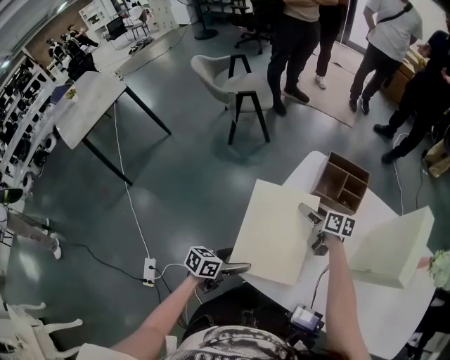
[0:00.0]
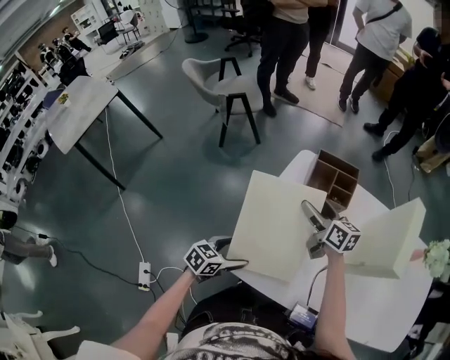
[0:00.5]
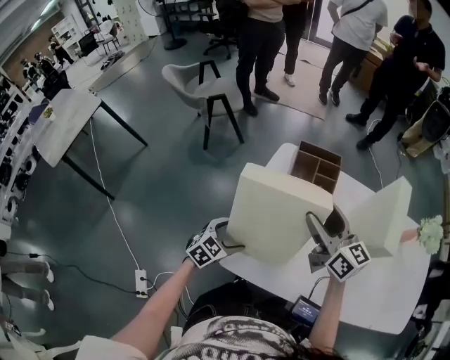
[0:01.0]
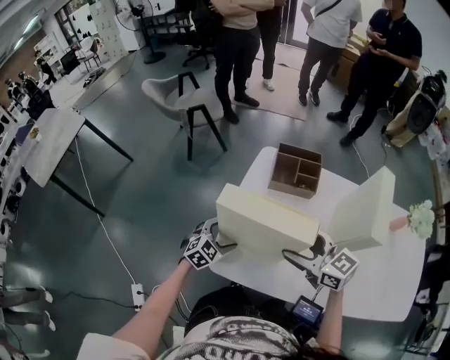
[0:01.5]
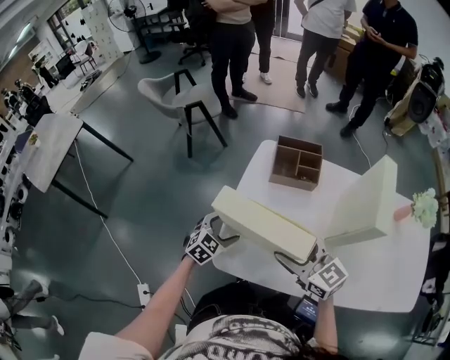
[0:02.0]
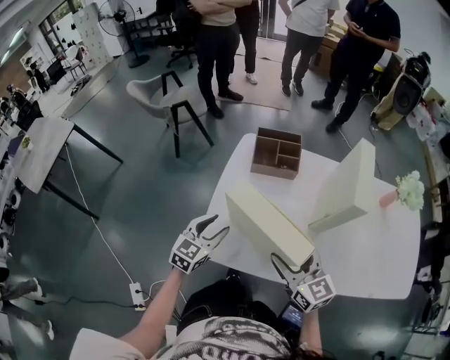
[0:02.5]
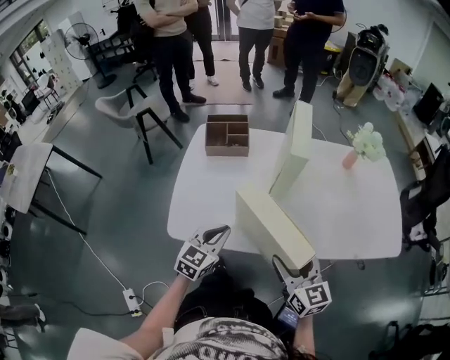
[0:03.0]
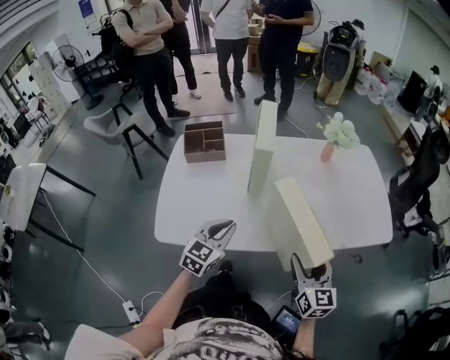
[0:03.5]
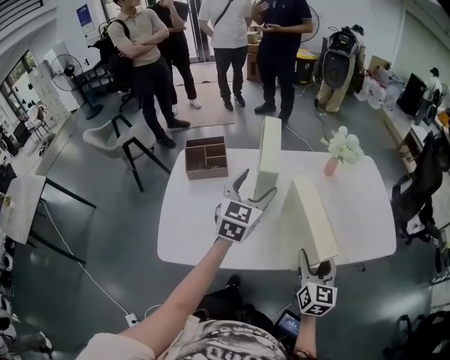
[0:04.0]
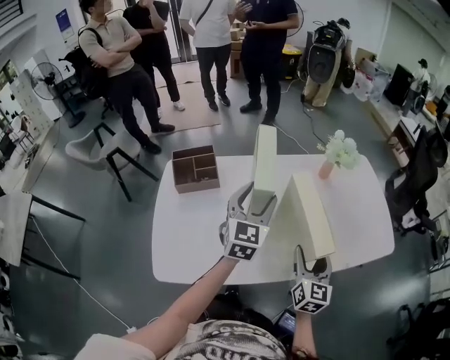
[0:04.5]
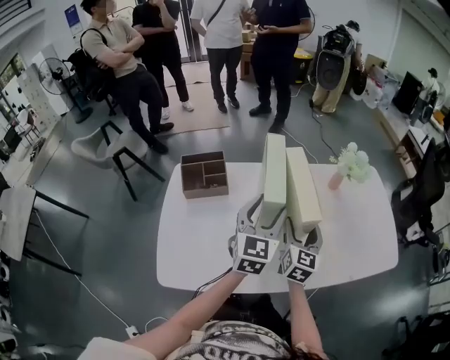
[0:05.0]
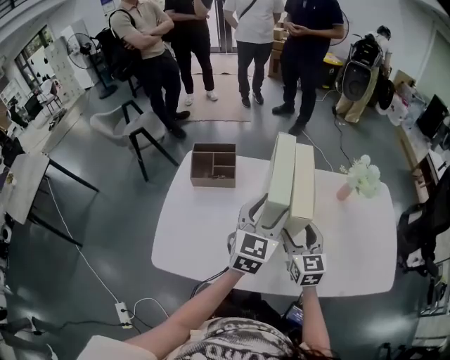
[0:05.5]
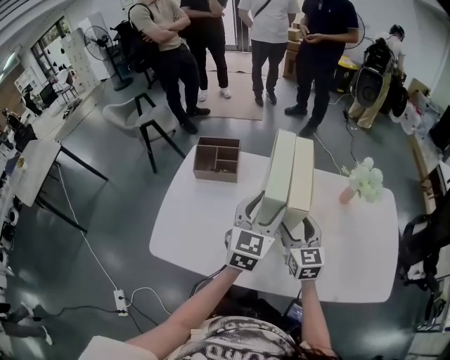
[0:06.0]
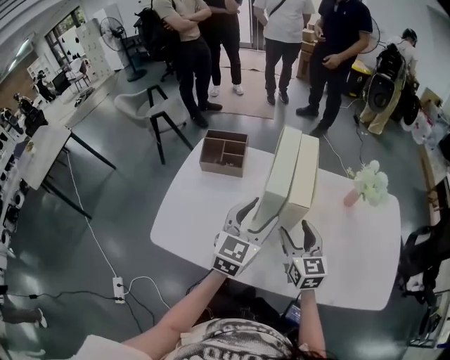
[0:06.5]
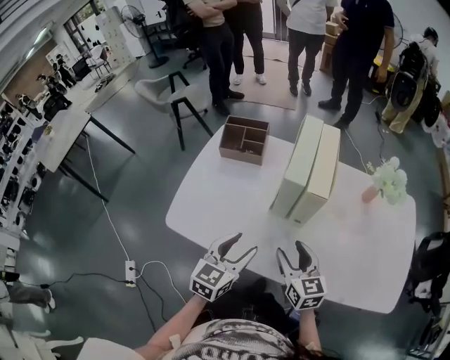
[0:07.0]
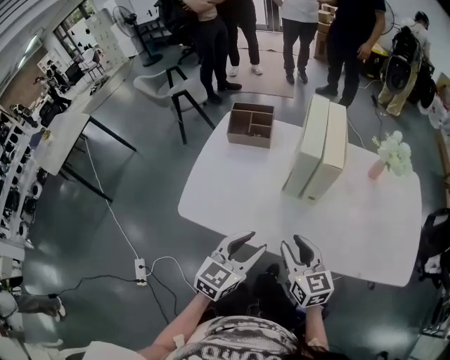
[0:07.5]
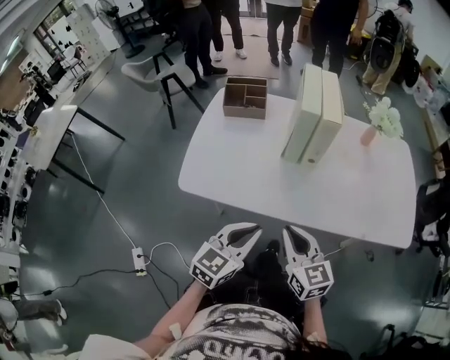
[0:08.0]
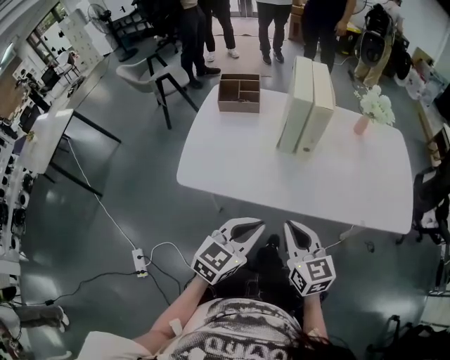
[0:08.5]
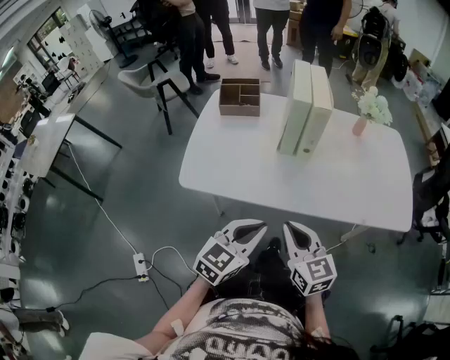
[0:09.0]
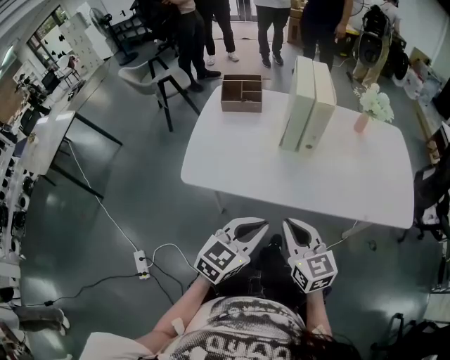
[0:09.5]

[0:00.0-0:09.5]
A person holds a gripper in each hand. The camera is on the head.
0:00.0 to 0:02.0: The left gripper heads forward, covering roughly 10 cm, and rotates around the line of its fingers by some 60 degrees, clockwise from behind. Meanwhile the right gripper is displaced backward and upward by roughly 30 cm, and rolls counterclockwise, seen from behind, by approximately 40 degrees.
0:02.0 to 0:04.0: The left gripper moves approximately 50 cm, changes its angle by roughly 30 degrees, and closes and opens again; the right gripper shifts by roughly 40 cm, and turns by about 70 degrees.
0:04.0 to 0:05.5: The right gripper travels forward and to the left by some 20 cm, and swivels approximately 30 degrees.
0:05.5 to 0:07.5: The two grippers go some 20 cm backward. The right gripper changes its angle by approximately 20 degrees, and closes.
0:07.5 to 0:09.5: Both grippers travel together backward, roughly 15 cm. The left gripper closes its fingers.

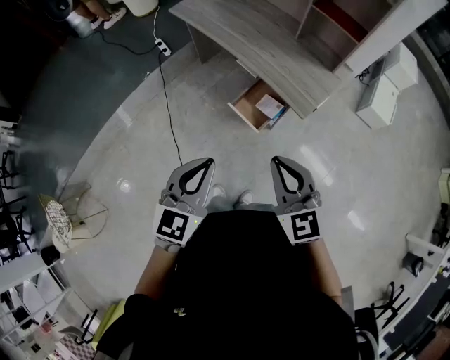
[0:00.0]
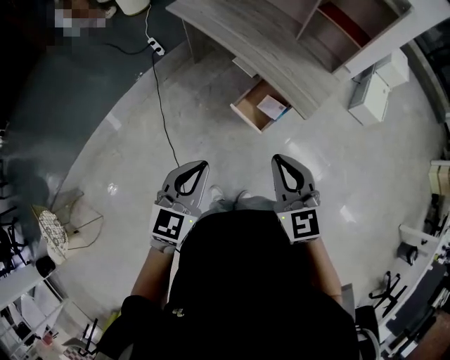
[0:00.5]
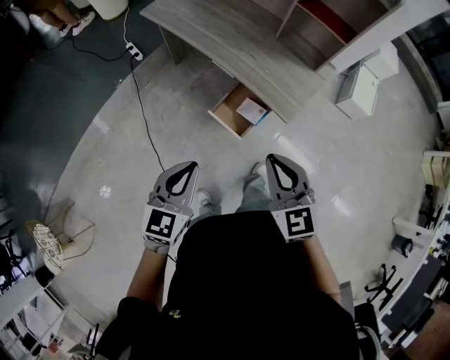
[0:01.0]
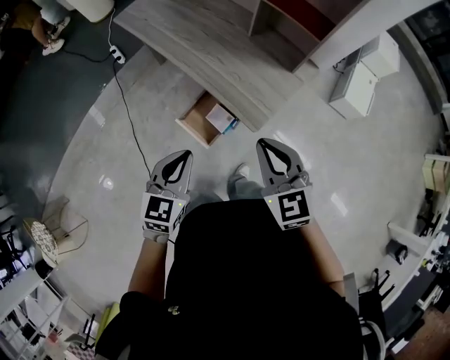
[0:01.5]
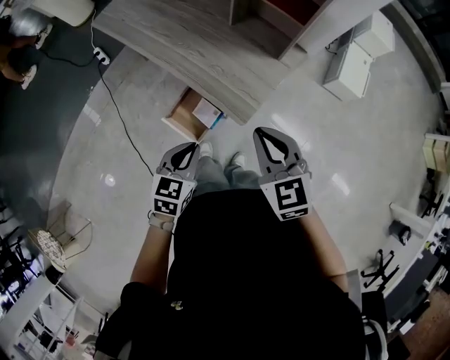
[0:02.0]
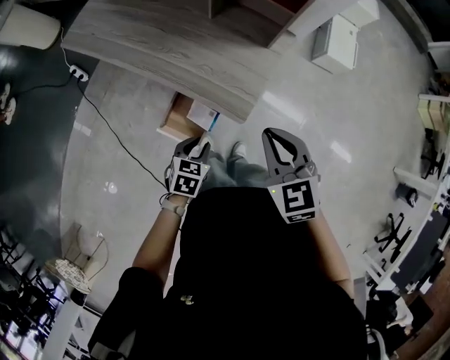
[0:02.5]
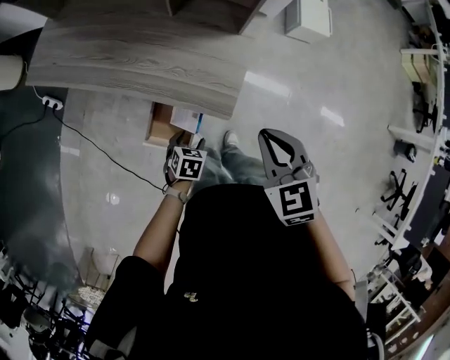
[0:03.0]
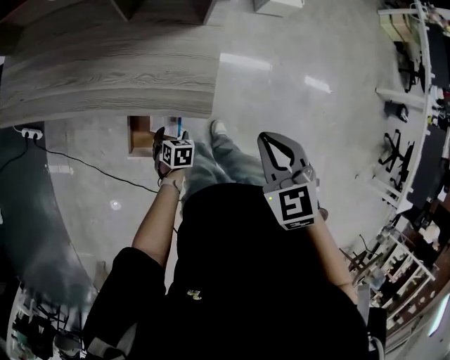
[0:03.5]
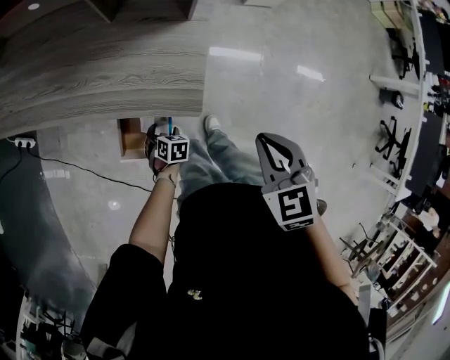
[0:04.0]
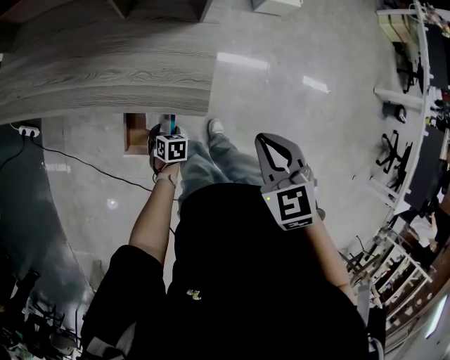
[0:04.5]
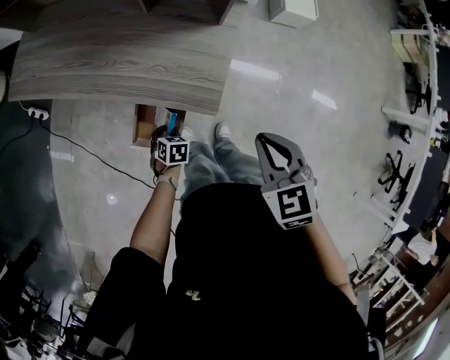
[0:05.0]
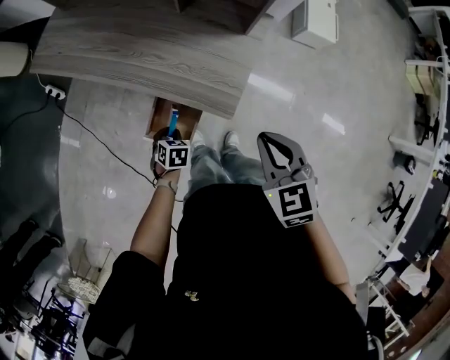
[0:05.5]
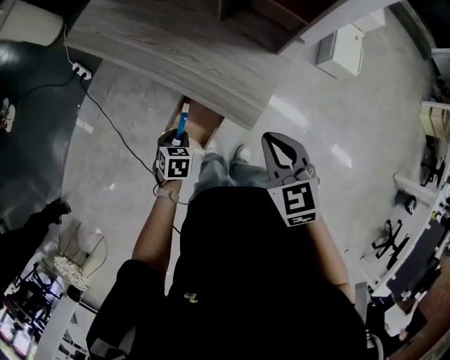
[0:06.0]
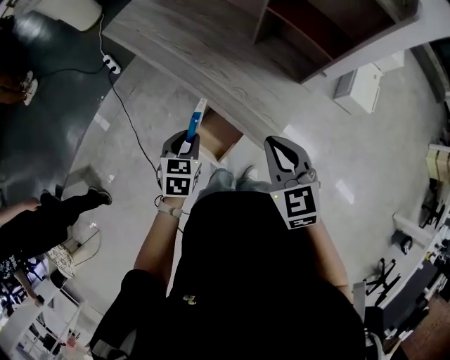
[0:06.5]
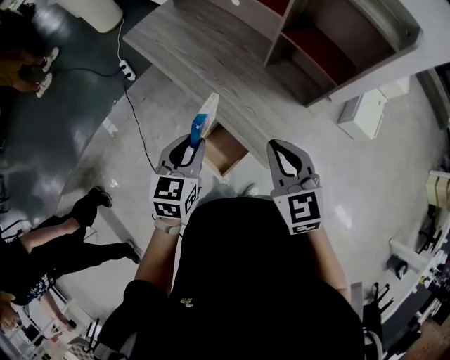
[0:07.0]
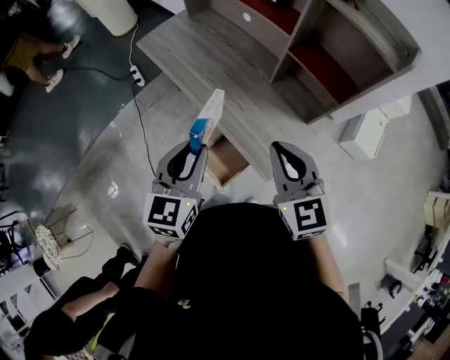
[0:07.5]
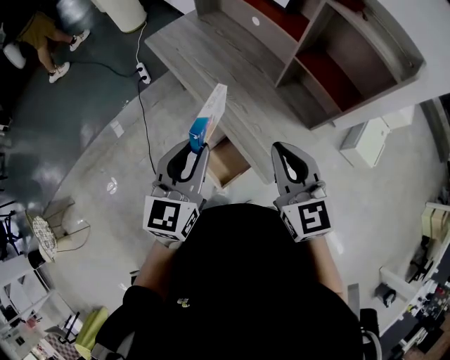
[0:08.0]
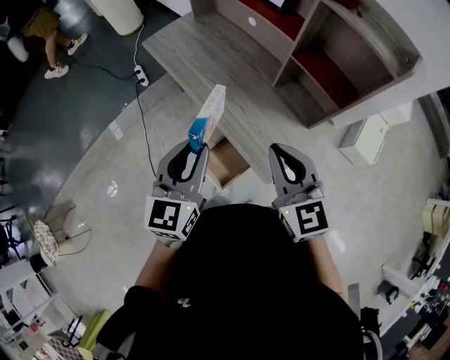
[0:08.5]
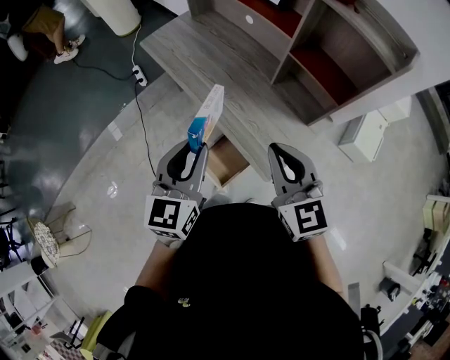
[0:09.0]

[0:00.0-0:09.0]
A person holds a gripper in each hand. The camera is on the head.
0:00.0 to 0:02.0: The right gripper goes approximately 25 cm forward and to the right; the left gripper is displaced forward, to the right and downward by approximately 30 cm, and changes its angle by roughly 20 degrees.
0:02.0 to 0:04.5: The right gripper shifts approximately 5 cm downward, and turns by about 40 degrees. The left gripper travels downward by roughly 30 cm, tips its fingers downward by about 40 degrees, and opens its fingers.
0:04.5 to 0:07.0: The right gripper ends up some 20 cm from where it was, and rotates some 40 degrees. The left gripper heads upward, covering some 40 cm, angles its fingers upward, by roughly 40 degrees, and closes its fingers.
0:07.0 to 0:09.0: The left gripper goes approximately 10 cm upward; the right gripper shifts some 5 cm upward.

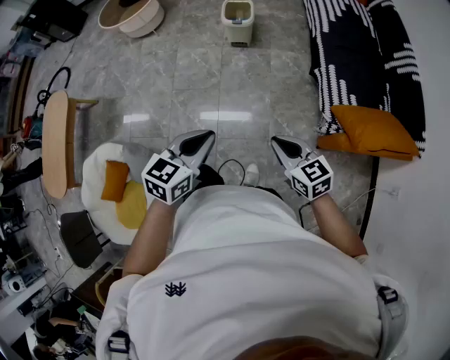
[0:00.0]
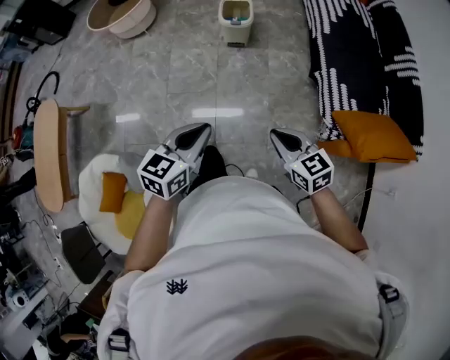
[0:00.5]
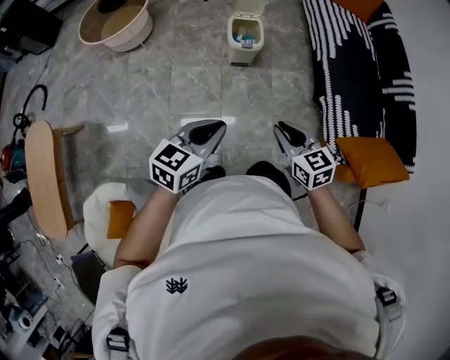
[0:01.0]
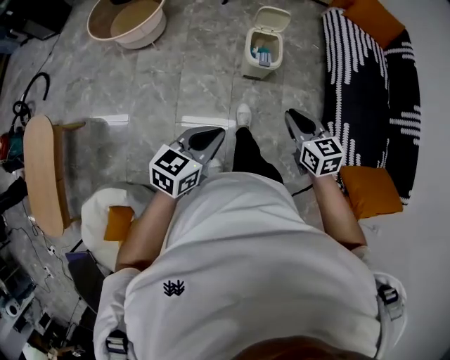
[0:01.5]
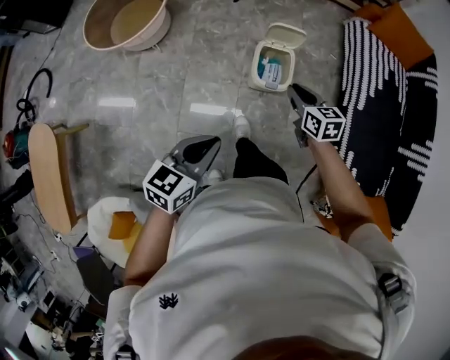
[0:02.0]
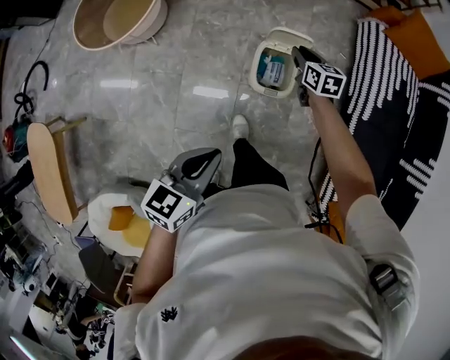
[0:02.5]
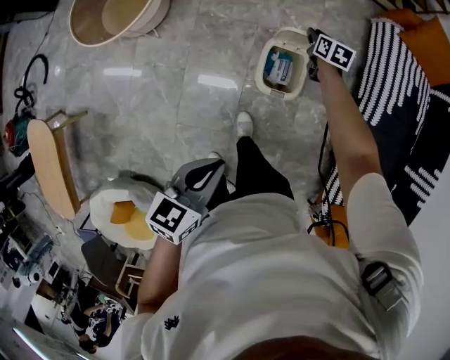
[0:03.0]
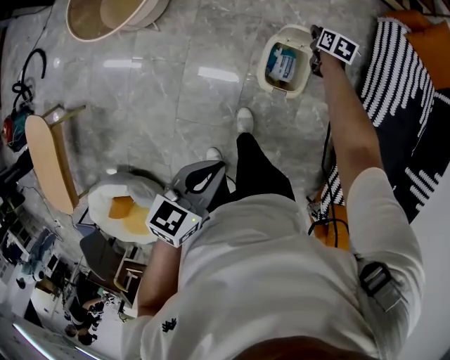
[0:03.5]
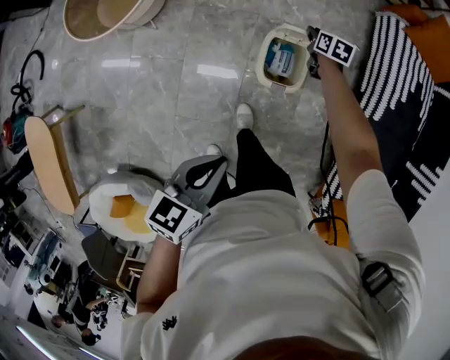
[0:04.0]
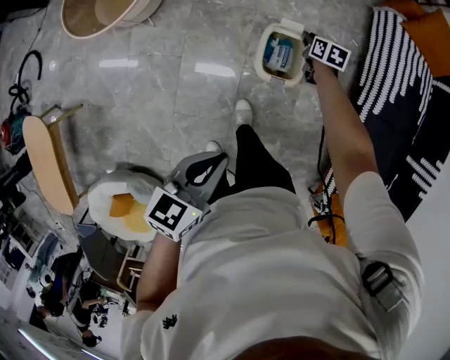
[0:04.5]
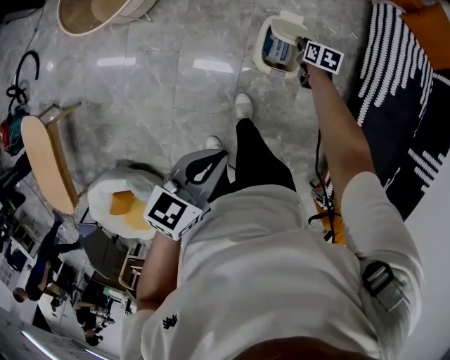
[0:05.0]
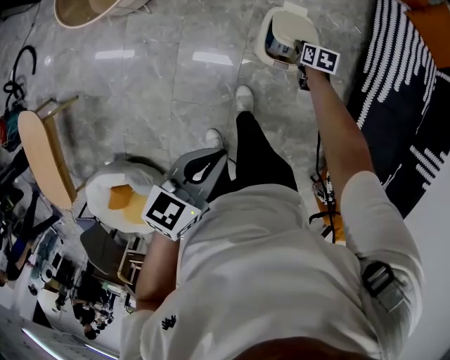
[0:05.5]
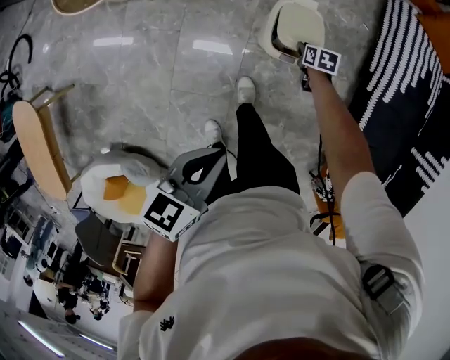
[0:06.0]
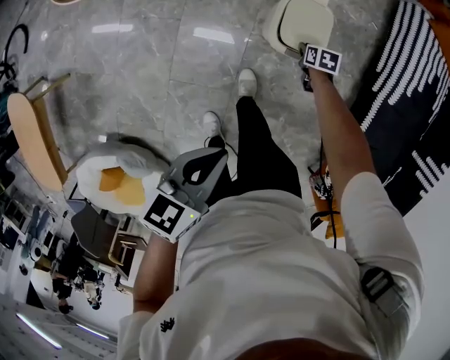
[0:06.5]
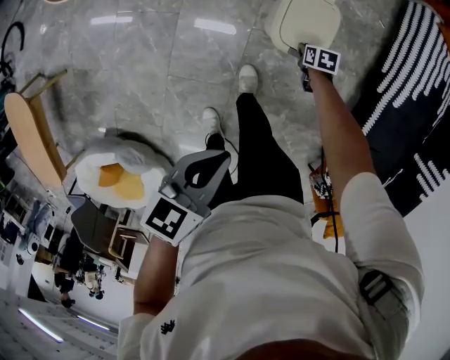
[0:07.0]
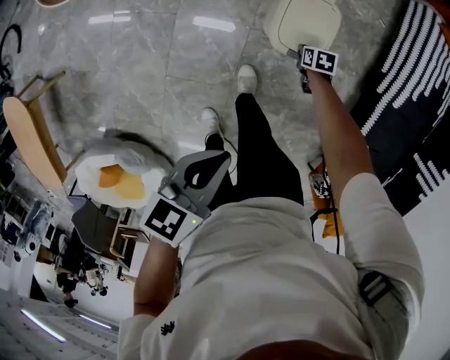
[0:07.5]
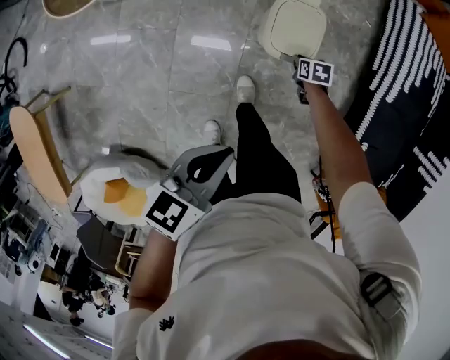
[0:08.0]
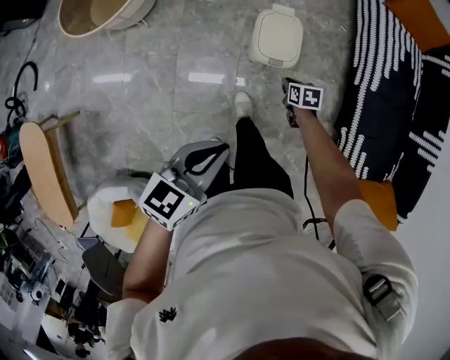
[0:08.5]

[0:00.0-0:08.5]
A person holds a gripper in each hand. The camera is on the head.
0:00.0 to 0:02.0: The two grippers travel together, forward, approximately 70 cm.
0:02.0 to 0:04.0: The left gripper moves forward, about 10 cm. The right gripper goes approximately 40 cm forward and downward, and swivels about 20 degrees.
0:04.0 to 0:06.5: The right gripper moves backward and downward, roughly 25 cm, and changes its angle by about 20 degrees; the left gripper goes roughly 10 cm backward and downward.
0:06.5 to 0:08.5: The left gripper shifts approximately 5 cm upward. The right gripper heads backward and upward, covering roughly 20 cm.
